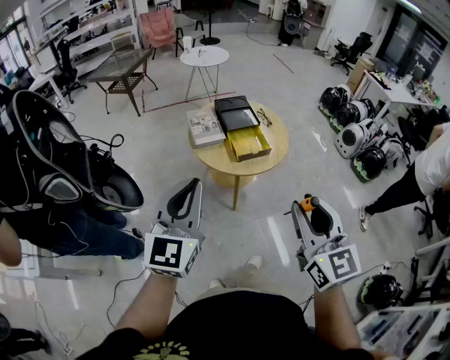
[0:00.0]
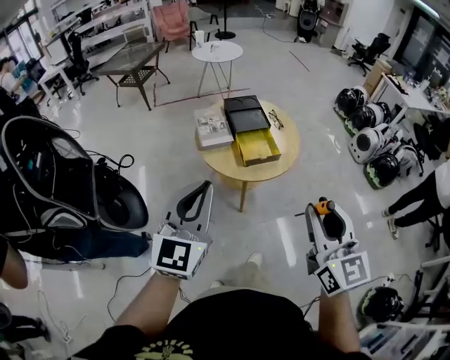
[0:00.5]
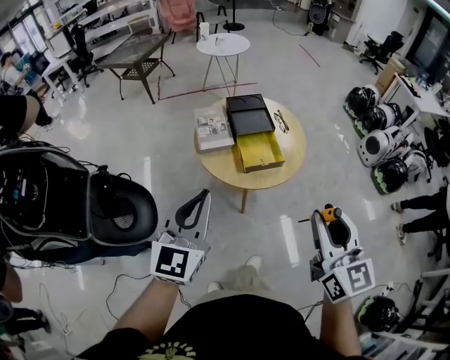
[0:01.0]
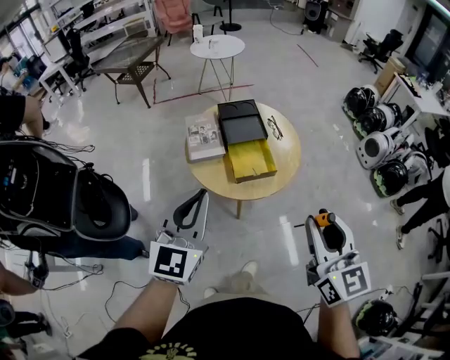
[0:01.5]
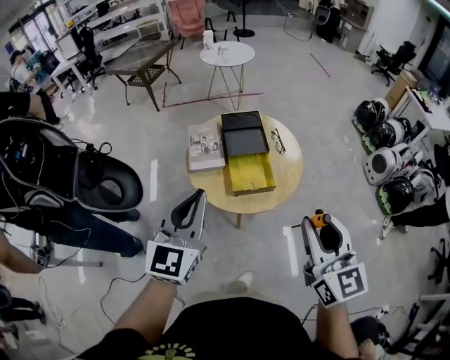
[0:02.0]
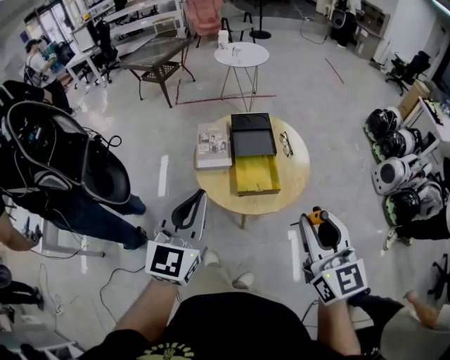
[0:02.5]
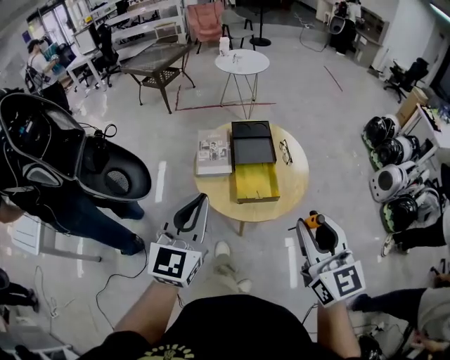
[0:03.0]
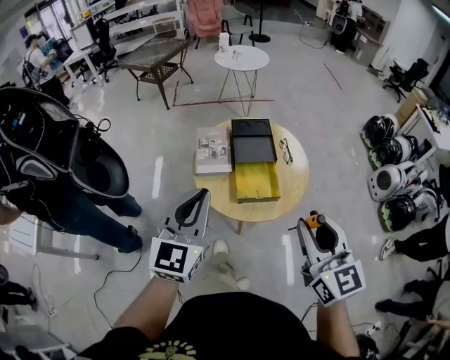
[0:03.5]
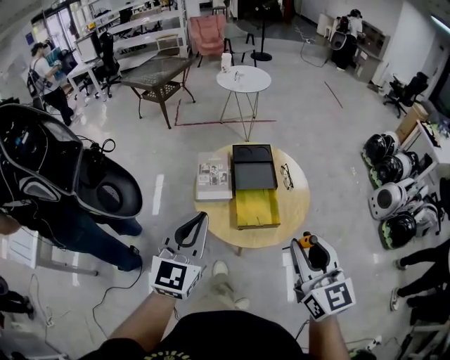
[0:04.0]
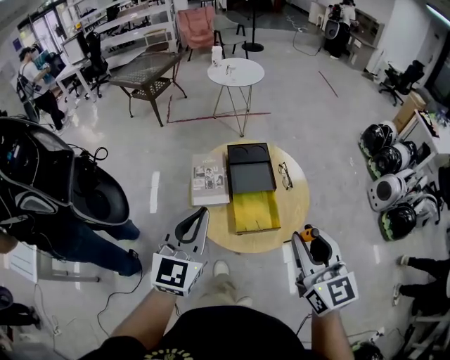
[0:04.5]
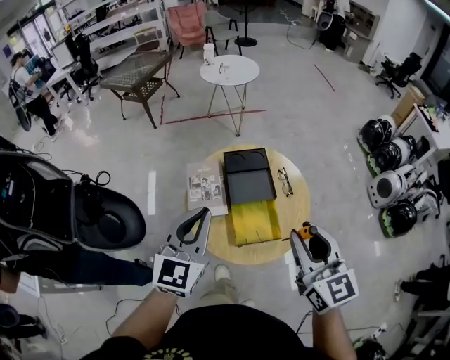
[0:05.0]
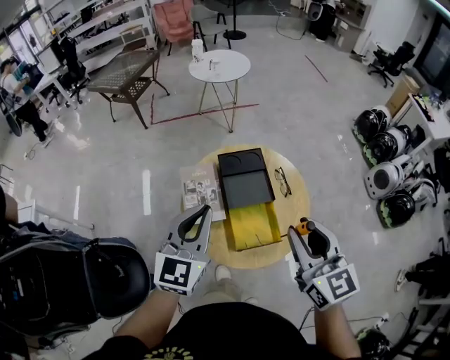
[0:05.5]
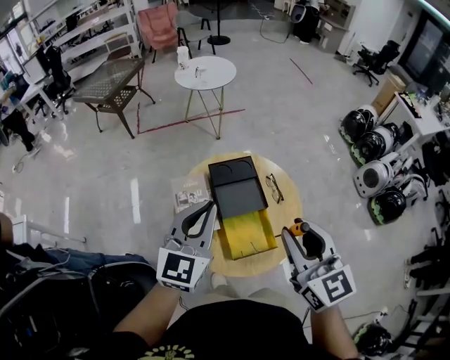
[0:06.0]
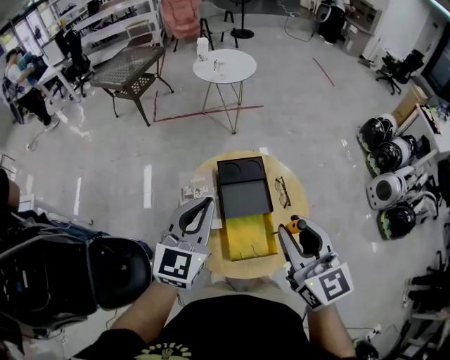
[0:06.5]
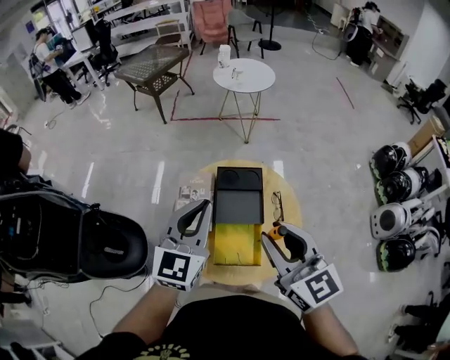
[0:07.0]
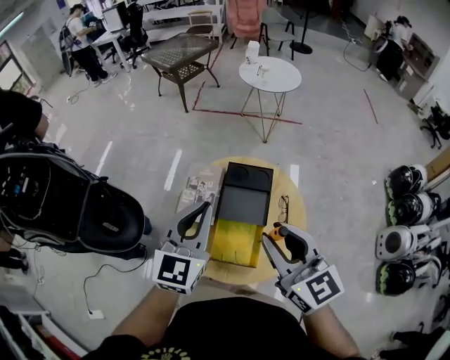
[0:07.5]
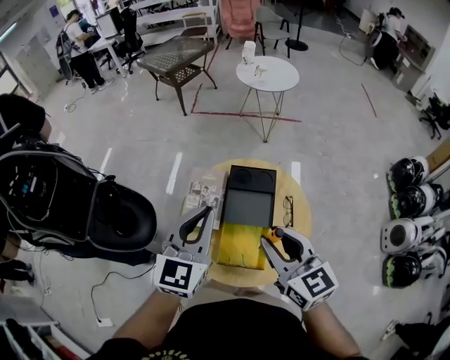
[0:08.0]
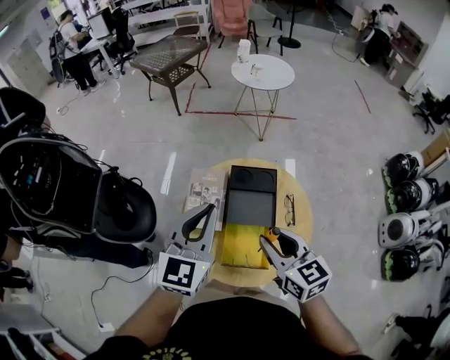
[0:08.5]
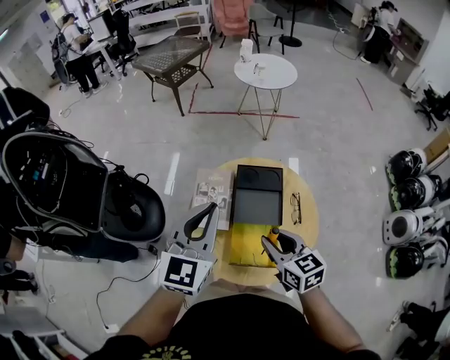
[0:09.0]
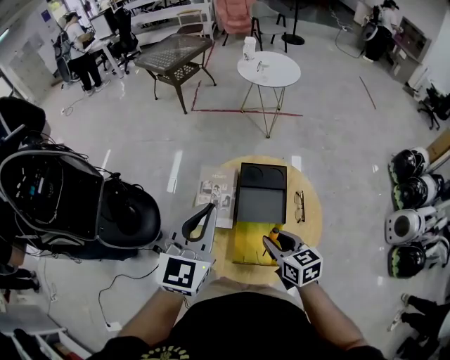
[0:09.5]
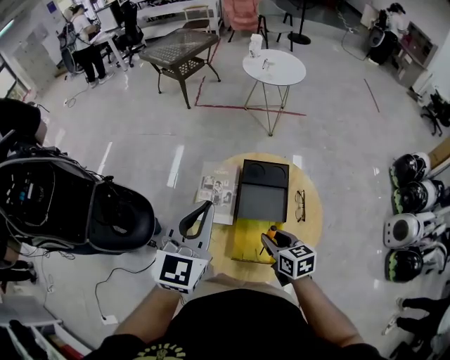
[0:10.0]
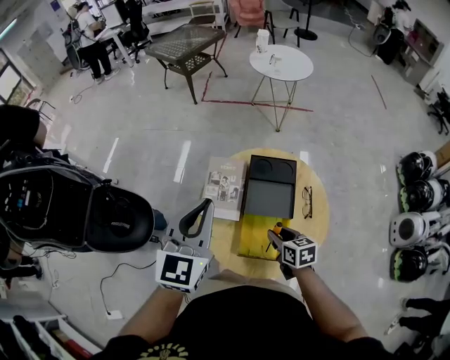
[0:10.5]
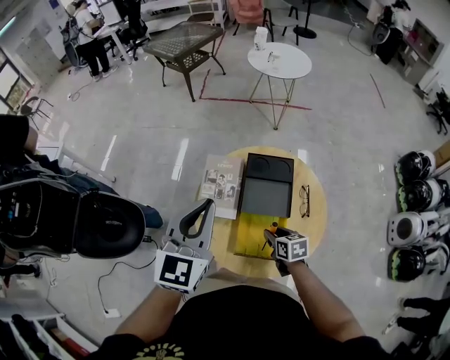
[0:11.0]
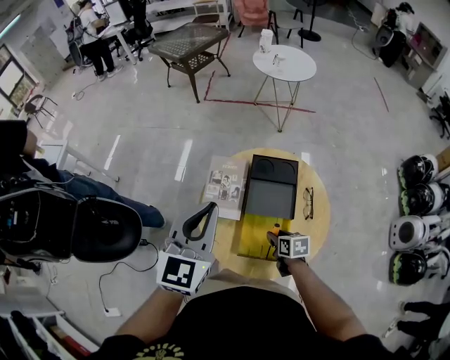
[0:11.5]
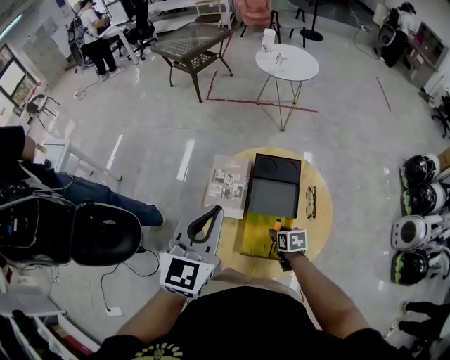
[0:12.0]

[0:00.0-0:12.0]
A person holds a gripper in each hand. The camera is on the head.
0:00.0 to 0:02.0: The grippers both shift forward and to the right by some 30 cm.
0:02.0 to 0:04.0: Both grippers travel together forward, approximately 5 cm.
0:04.0 to 0:06.0: The two grippers go some 20 cm forward.
0:06.0 to 0:08.0: The right gripper moves some 10 cm, and turns by roughly 30 degrees, while the left gripper turns by roughly 30 degrees.
0:08.0 to 0:10.0: The left gripper goes roughly 5 cm to the left. Meanwhile the right gripper travels downward by about 20 cm, and turns by about 30 degrees.
0:10.0 to 0:12.0: The right gripper goes approximately 15 cm downward, and swivels approximately 20 degrees.

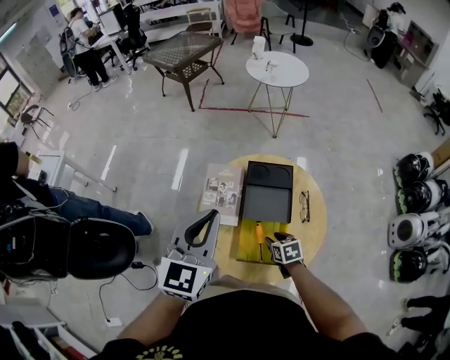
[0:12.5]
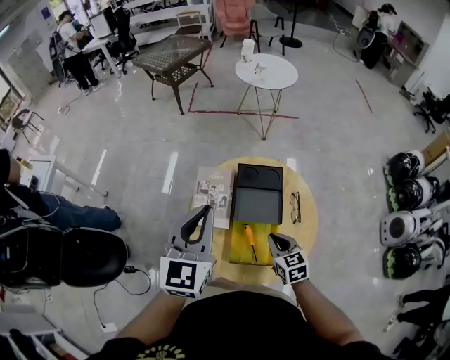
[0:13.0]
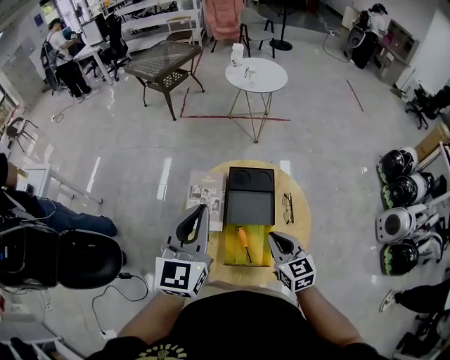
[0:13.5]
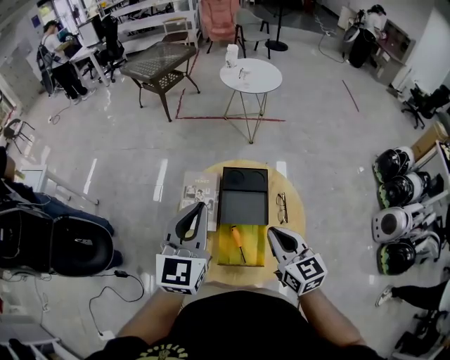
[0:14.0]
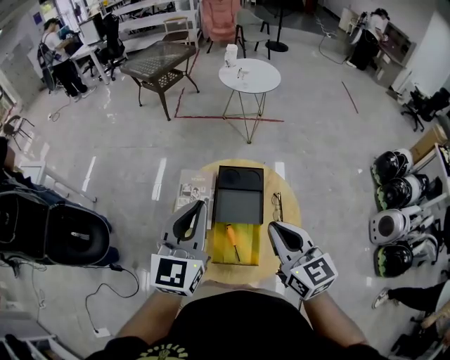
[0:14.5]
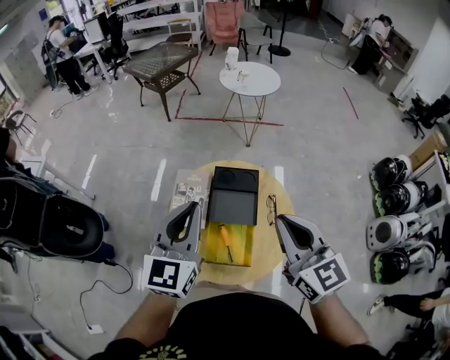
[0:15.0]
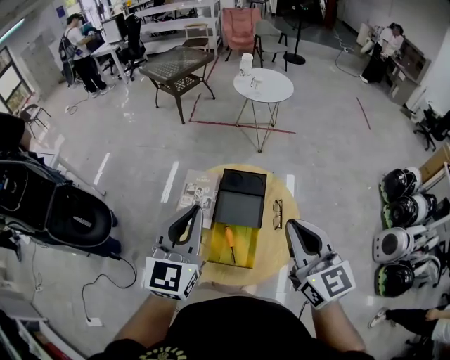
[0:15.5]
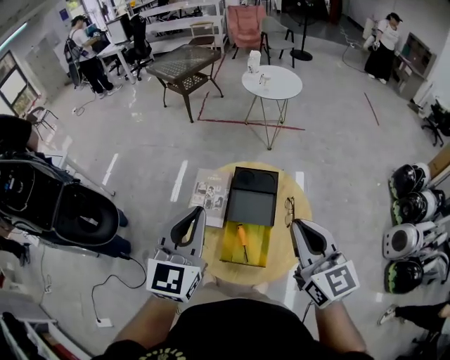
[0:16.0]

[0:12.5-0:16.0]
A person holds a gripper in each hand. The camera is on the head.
0:12.5 to 0:14.5: The left gripper moves to the right, about 5 cm; the right gripper is displaced upward by approximately 35 cm, angles its fingers upward, by some 40 degrees, and closes up.
0:14.5 to 0:16.0: The right gripper shifts about 5 cm upward. The left gripper changes place by approximately 5 cm.

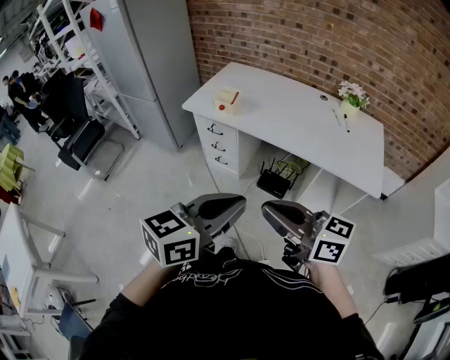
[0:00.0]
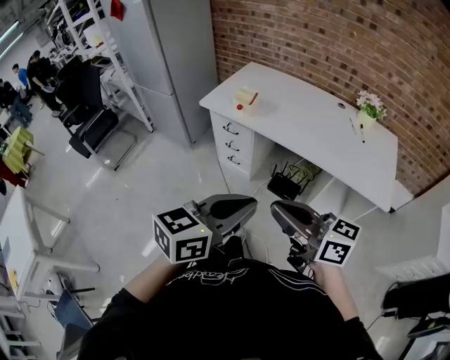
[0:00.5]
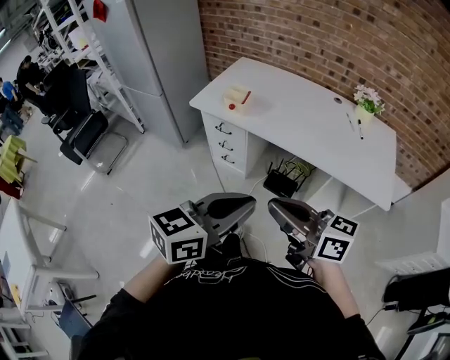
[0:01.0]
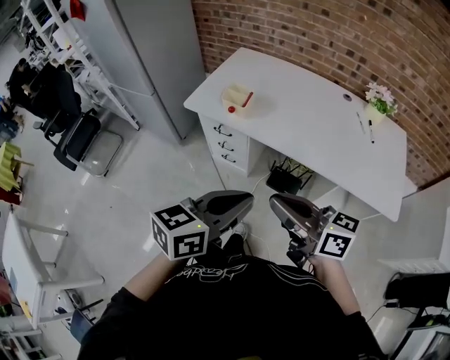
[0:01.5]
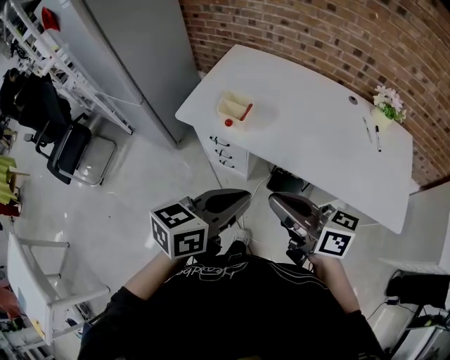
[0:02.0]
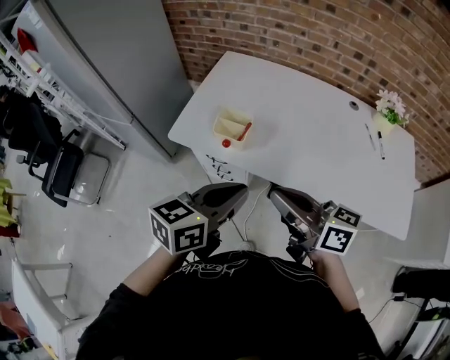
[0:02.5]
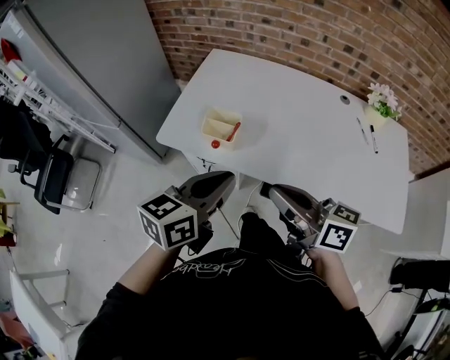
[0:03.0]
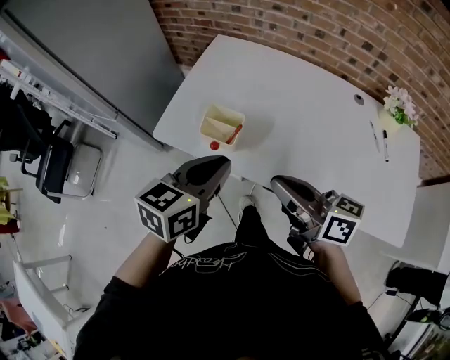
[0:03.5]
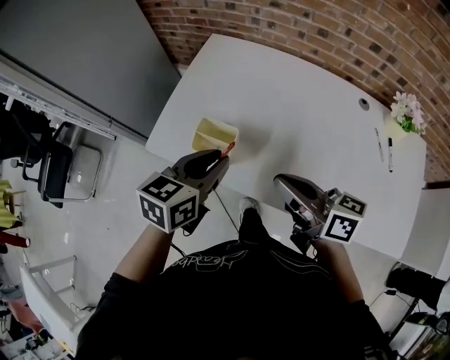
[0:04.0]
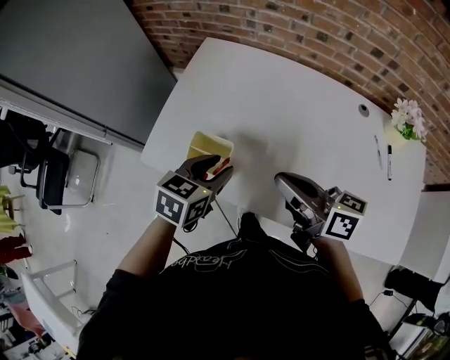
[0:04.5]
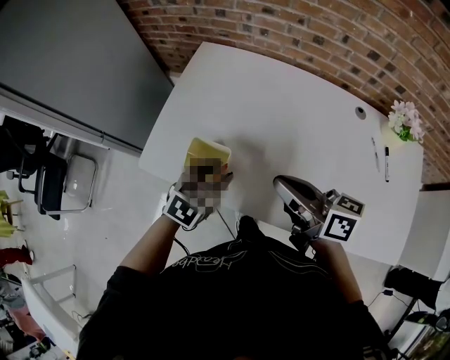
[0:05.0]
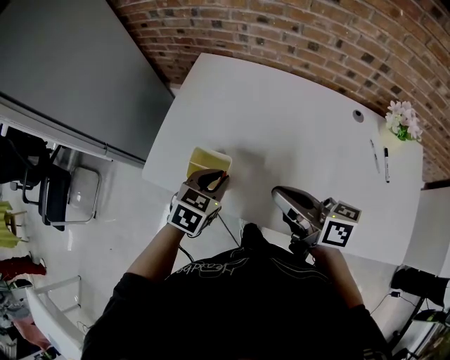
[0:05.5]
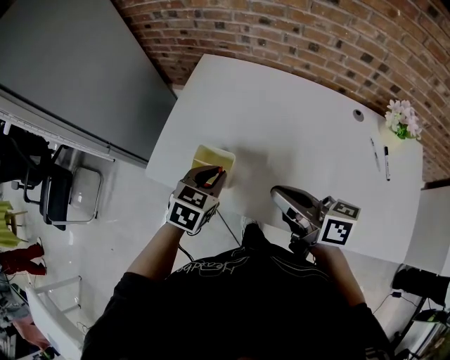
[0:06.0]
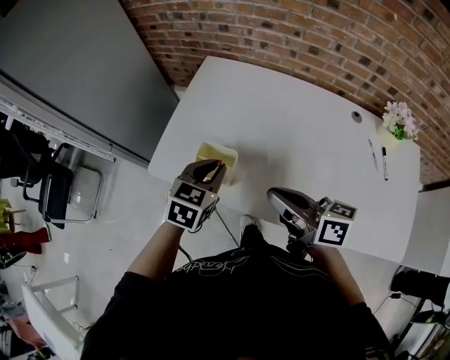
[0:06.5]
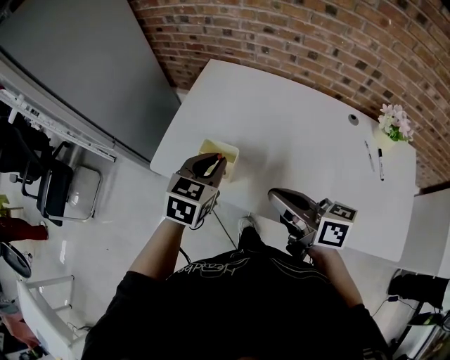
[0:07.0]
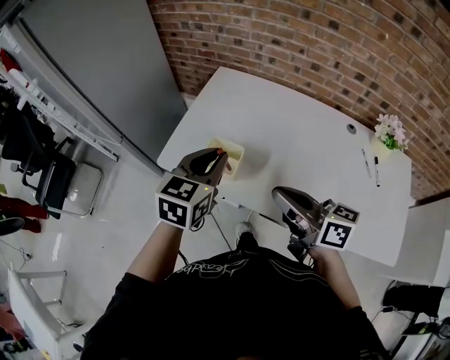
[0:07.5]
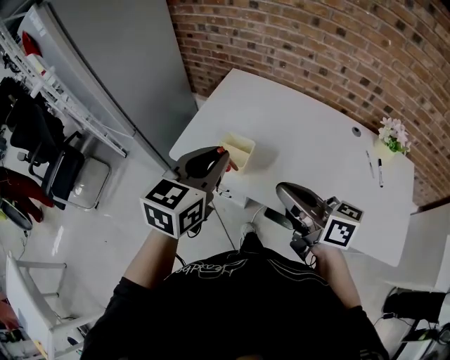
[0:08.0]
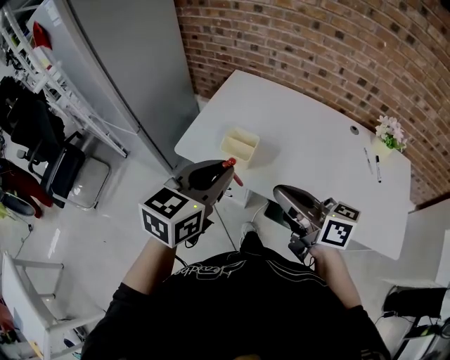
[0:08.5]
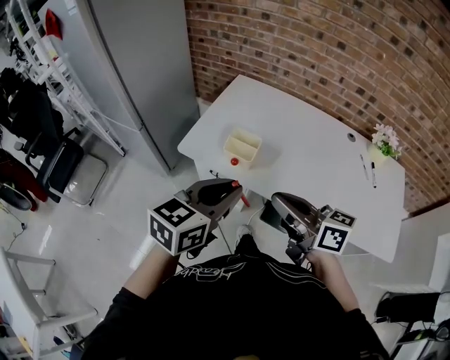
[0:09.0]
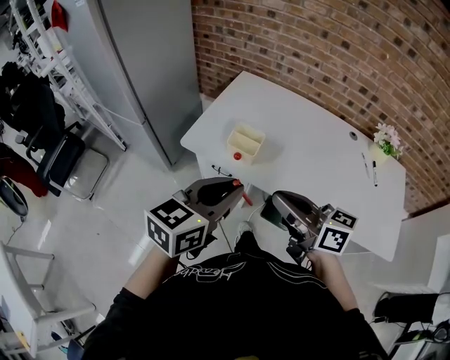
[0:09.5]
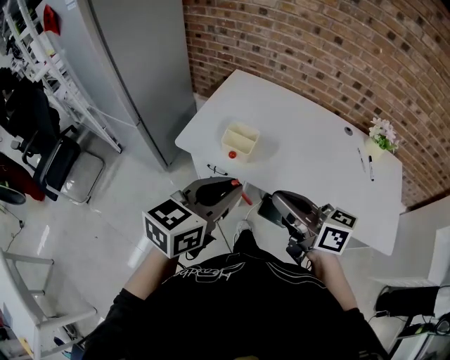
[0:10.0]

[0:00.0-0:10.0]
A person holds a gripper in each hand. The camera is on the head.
0:00.0 to 0:02.0: The grippers both shift forward by some 30 cm.
0:02.0 to 0:04.0: Both grippers move forward, roughly 25 cm.
0:04.0 to 0:06.0: The left gripper is displaced downward by about 10 cm, and rotates roughly 20 degrees.
0:06.0 to 0:08.0: The left gripper is displaced upward and backward by approximately 20 cm, and turns by roughly 30 degrees; the right gripper heads backward, upward and to the left, covering approximately 10 cm.
0:08.0 to 0:10.0: The left gripper heads backward, covering some 15 cm. Meanwhile the right gripper heads backward, covering some 10 cm.

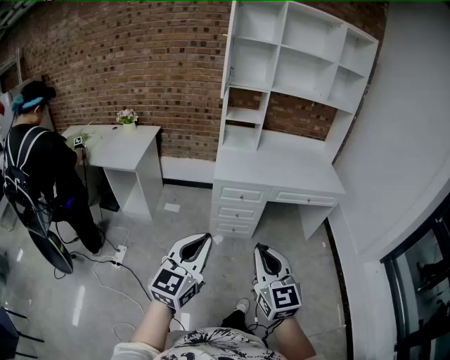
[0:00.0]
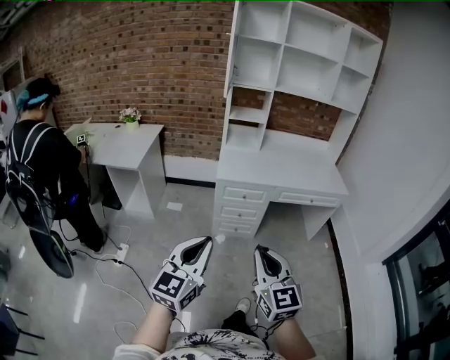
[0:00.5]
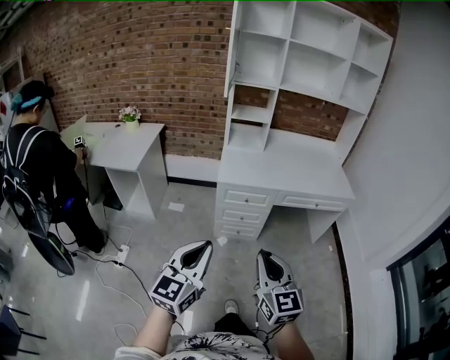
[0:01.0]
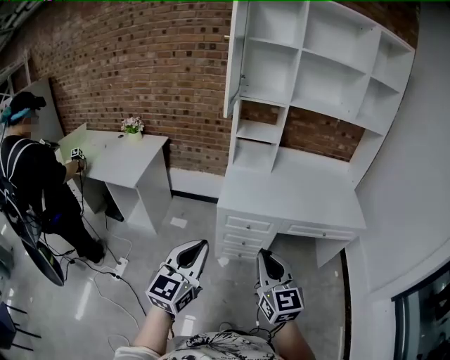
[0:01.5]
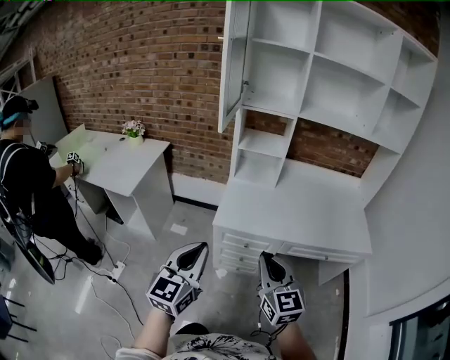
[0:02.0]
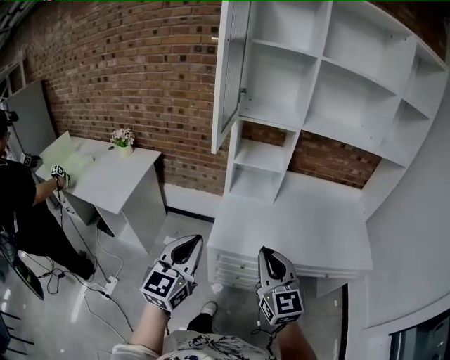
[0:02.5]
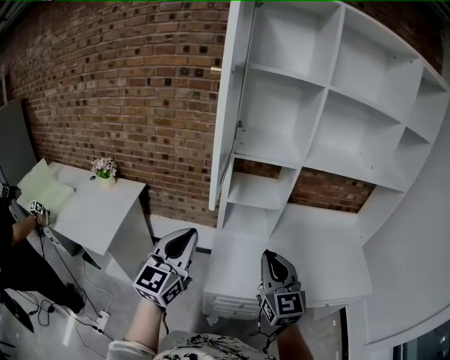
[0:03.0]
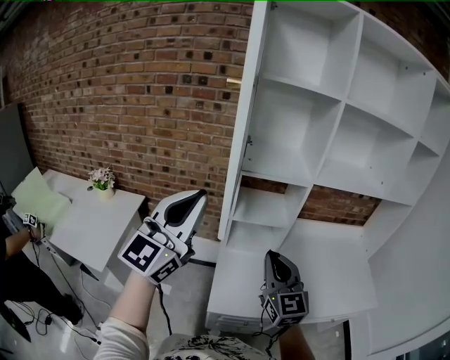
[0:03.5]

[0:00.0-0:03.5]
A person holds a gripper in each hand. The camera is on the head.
0:00.0 to 0:02.0: The two grippers go roughly 35 cm forward.
0:02.0 to 0:03.5: The right gripper moves forward, some 40 cm, while the left gripper heads forward and upward, covering roughly 50 cm, and rotates roughly 30 degrees.
